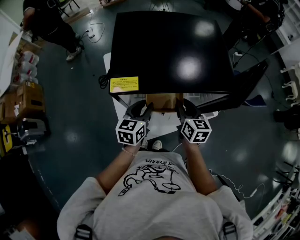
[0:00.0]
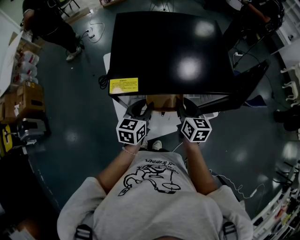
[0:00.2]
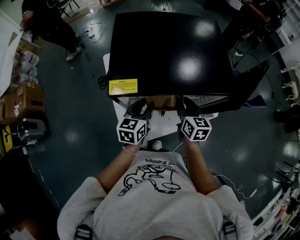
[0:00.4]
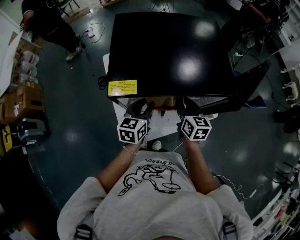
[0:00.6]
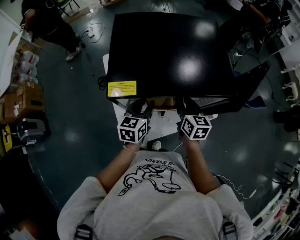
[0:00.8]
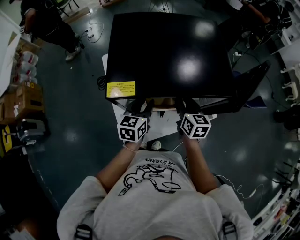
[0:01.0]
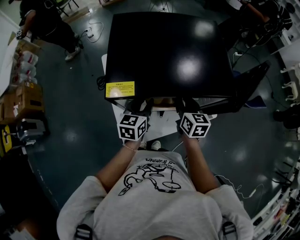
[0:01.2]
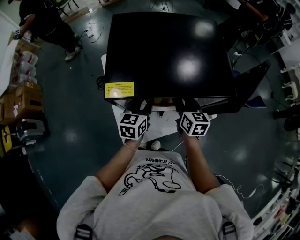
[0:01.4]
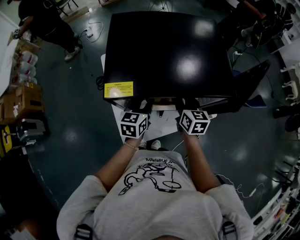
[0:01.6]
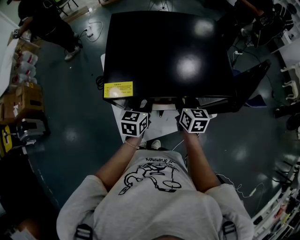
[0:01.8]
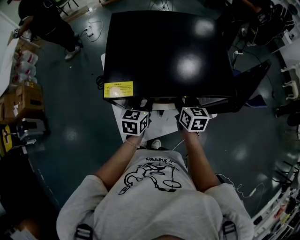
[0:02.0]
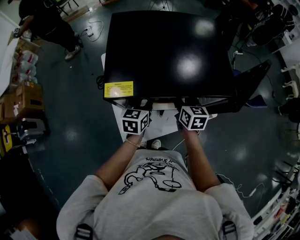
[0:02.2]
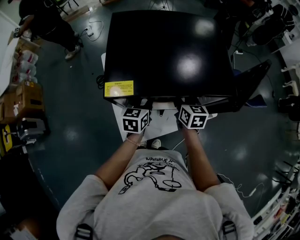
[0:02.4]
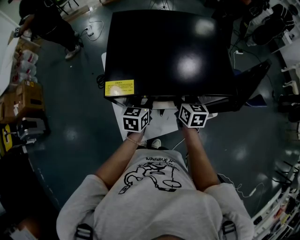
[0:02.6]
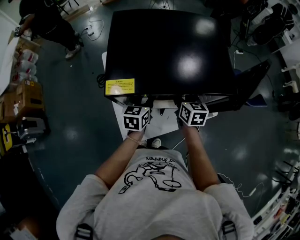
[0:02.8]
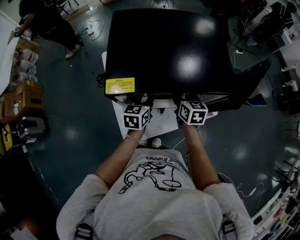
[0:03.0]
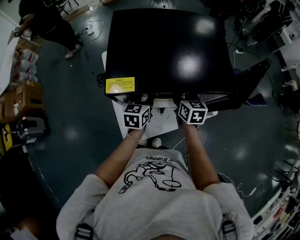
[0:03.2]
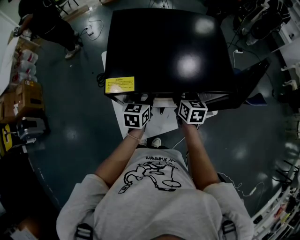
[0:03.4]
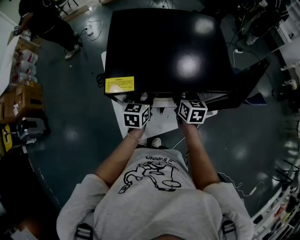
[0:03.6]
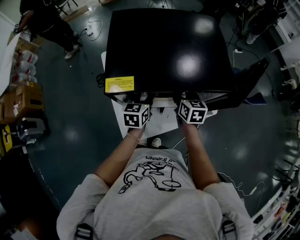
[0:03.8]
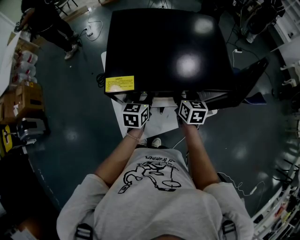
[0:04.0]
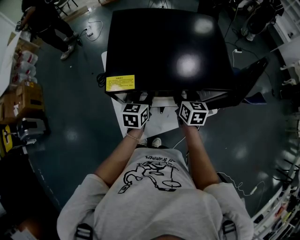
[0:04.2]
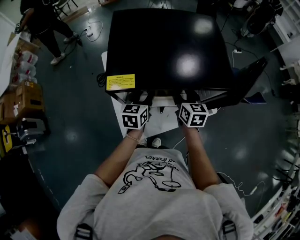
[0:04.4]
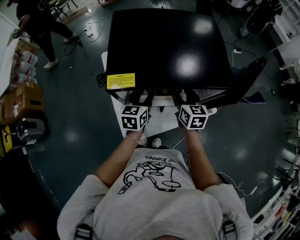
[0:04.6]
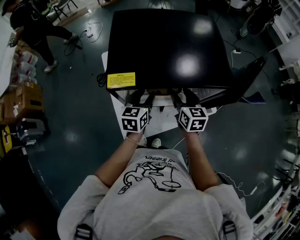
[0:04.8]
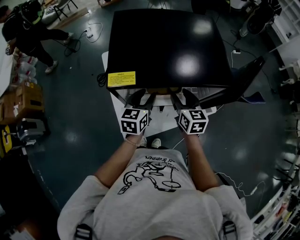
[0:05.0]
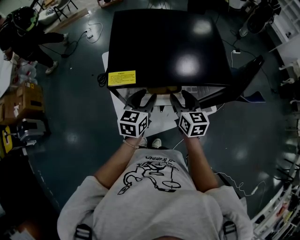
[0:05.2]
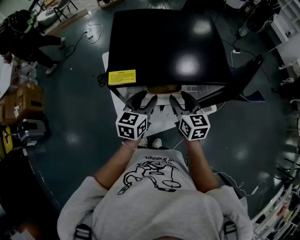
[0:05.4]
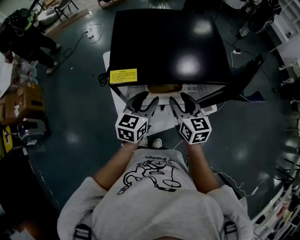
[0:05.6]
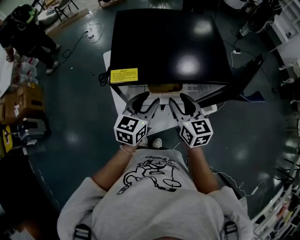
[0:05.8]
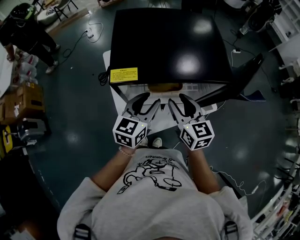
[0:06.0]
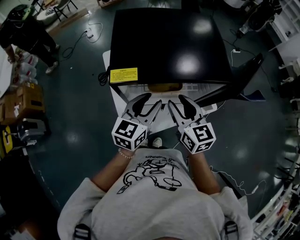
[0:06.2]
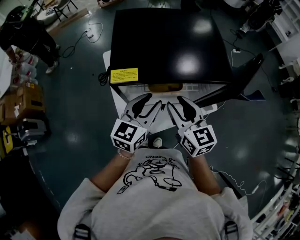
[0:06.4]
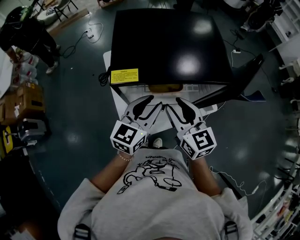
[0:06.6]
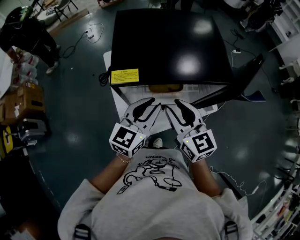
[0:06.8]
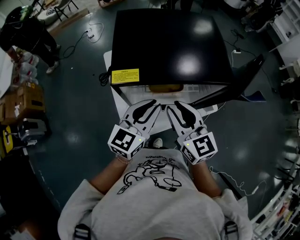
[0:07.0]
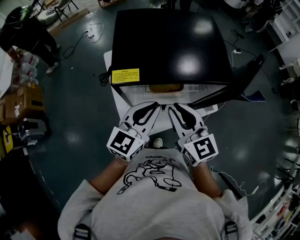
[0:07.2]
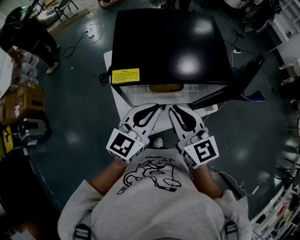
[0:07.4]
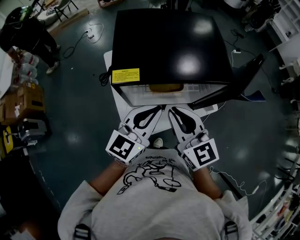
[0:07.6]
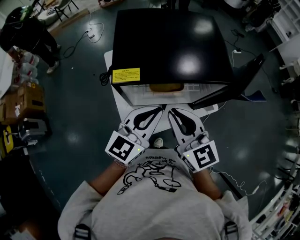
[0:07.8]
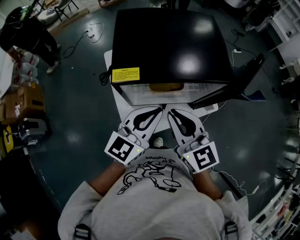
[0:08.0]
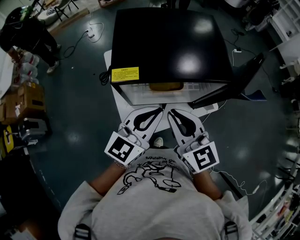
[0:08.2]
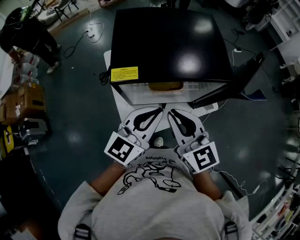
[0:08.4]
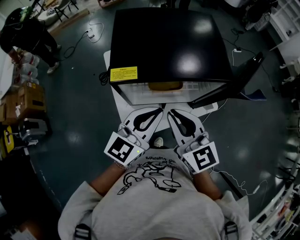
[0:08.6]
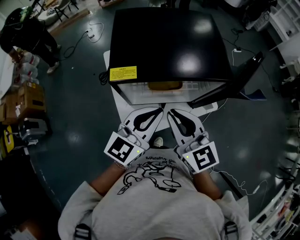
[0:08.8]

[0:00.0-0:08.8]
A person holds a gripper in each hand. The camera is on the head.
0:00.0 to 0:01.4: There are only small adjustments of the grippers.
0:01.4 to 0:03.0: The right gripper opens up.
0:03.0 to 0:04.4: The grippers move only a little.
0:04.4 to 0:05.8: The right gripper heads backward and upward, covering some 10 cm. Meanwhile the left gripper shifts some 10 cm upward and backward.
0:05.8 to 0:07.4: The right gripper travels upward and backward by roughly 10 cm, and closes. Meanwhile the left gripper goes about 10 cm upward, and closes up.
0:07.4 to 0:08.8: The grippers stay close to where they were, moving slightly.

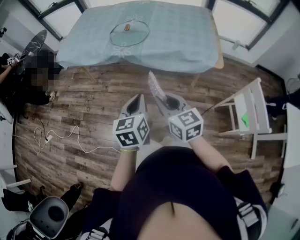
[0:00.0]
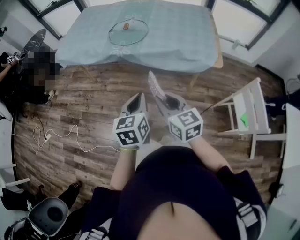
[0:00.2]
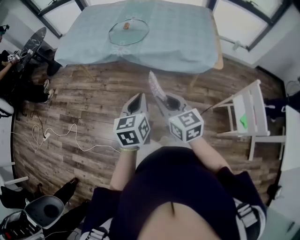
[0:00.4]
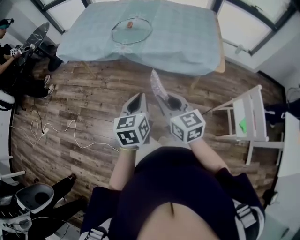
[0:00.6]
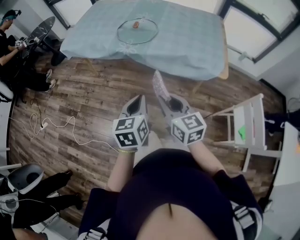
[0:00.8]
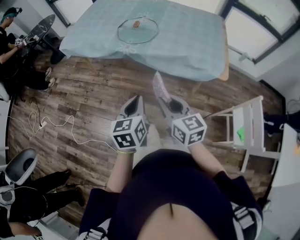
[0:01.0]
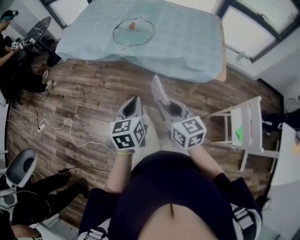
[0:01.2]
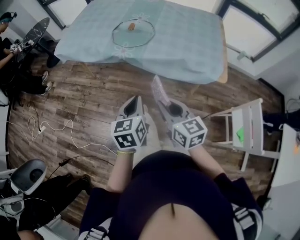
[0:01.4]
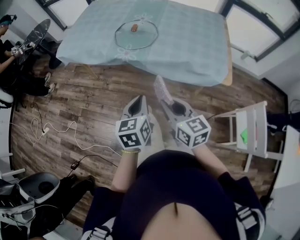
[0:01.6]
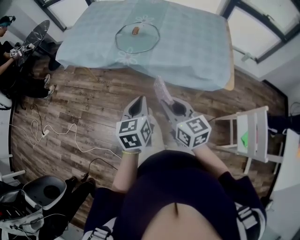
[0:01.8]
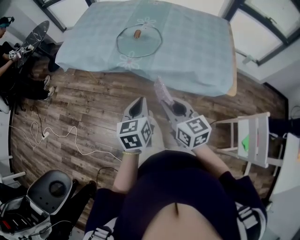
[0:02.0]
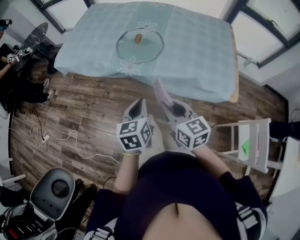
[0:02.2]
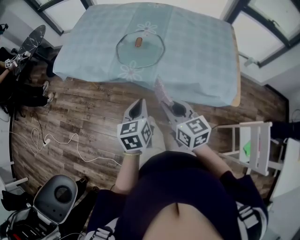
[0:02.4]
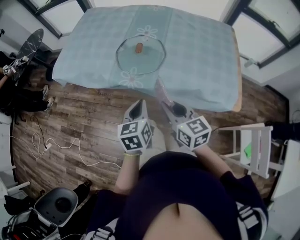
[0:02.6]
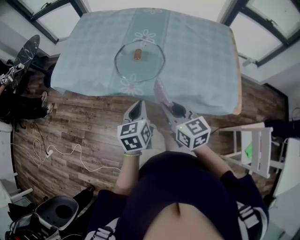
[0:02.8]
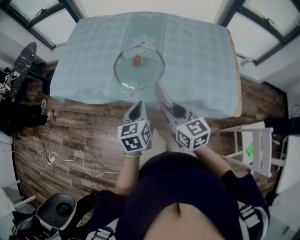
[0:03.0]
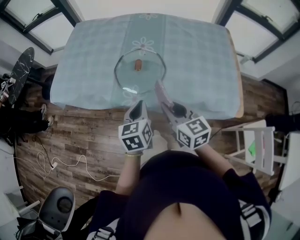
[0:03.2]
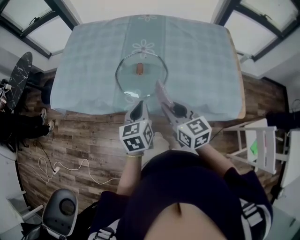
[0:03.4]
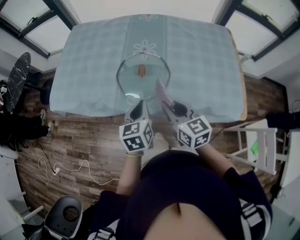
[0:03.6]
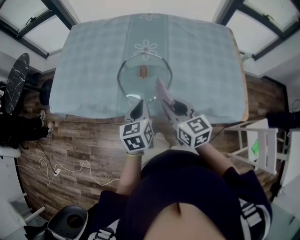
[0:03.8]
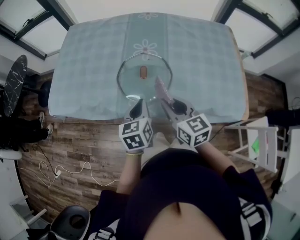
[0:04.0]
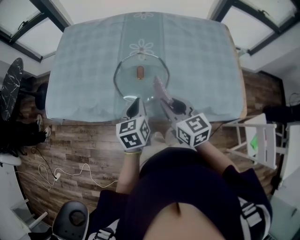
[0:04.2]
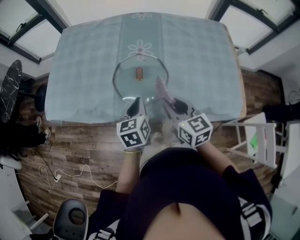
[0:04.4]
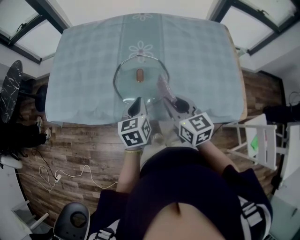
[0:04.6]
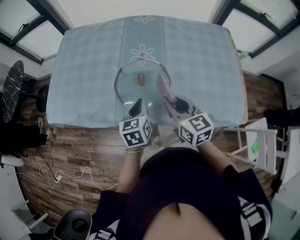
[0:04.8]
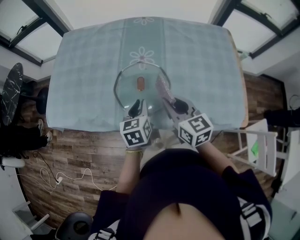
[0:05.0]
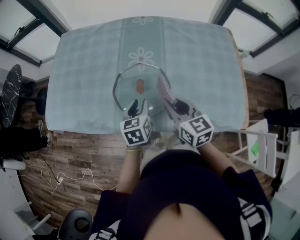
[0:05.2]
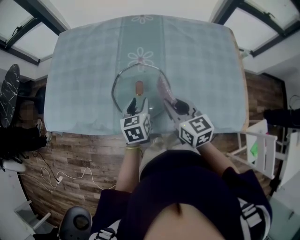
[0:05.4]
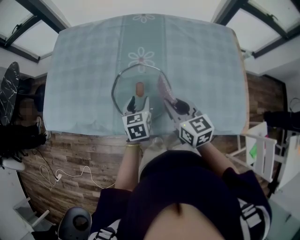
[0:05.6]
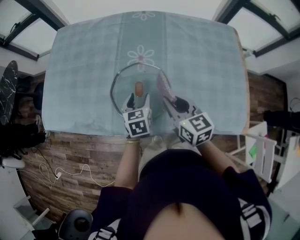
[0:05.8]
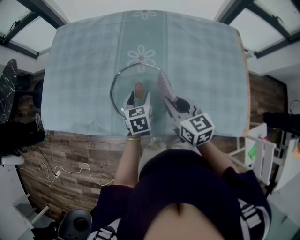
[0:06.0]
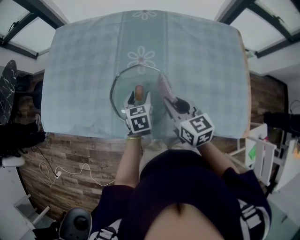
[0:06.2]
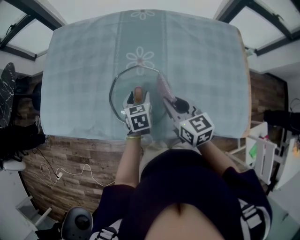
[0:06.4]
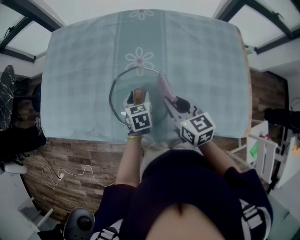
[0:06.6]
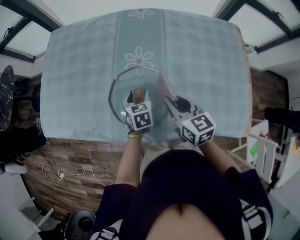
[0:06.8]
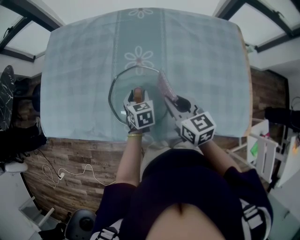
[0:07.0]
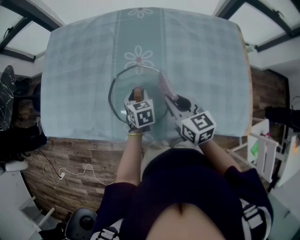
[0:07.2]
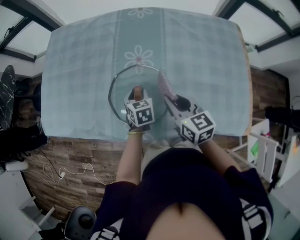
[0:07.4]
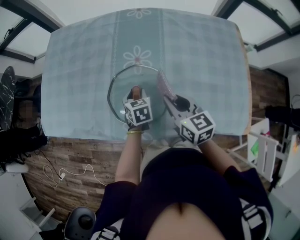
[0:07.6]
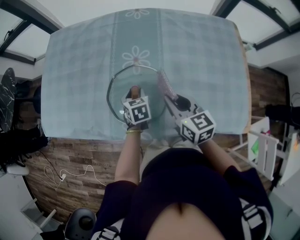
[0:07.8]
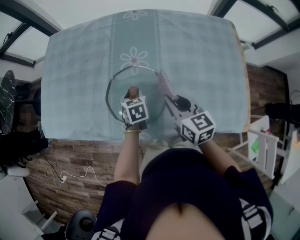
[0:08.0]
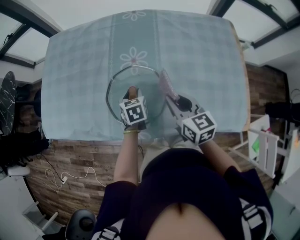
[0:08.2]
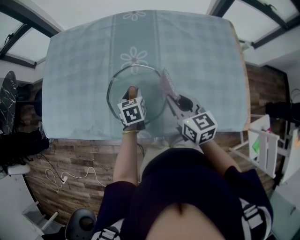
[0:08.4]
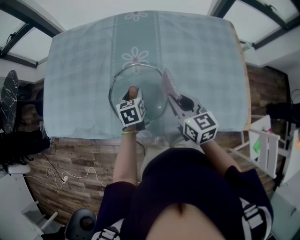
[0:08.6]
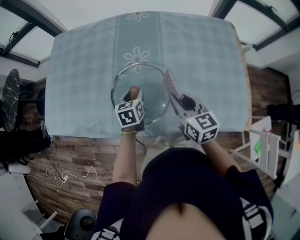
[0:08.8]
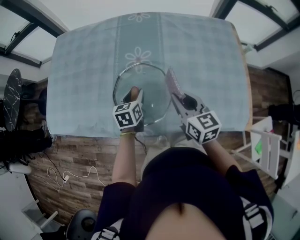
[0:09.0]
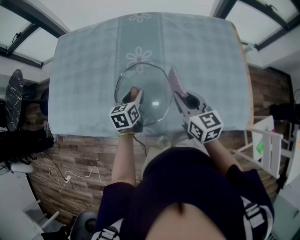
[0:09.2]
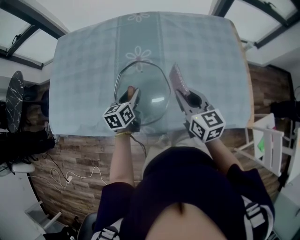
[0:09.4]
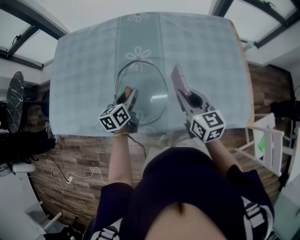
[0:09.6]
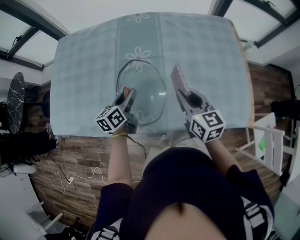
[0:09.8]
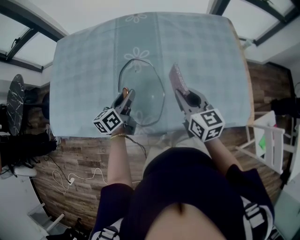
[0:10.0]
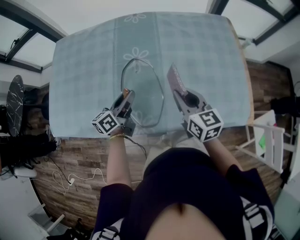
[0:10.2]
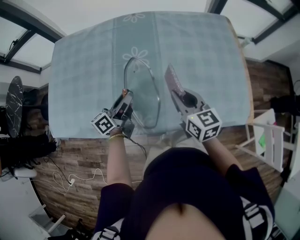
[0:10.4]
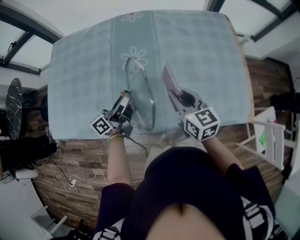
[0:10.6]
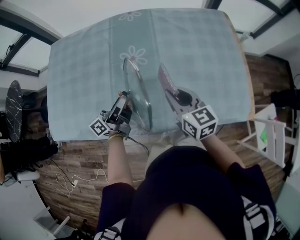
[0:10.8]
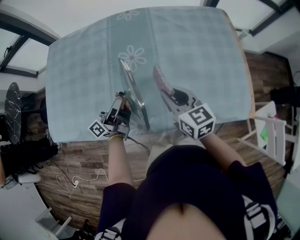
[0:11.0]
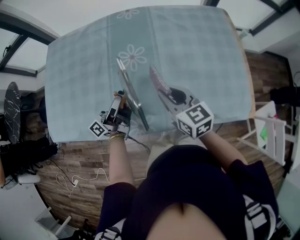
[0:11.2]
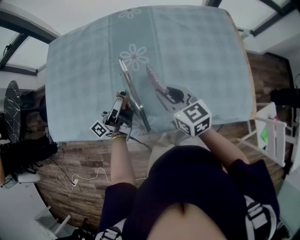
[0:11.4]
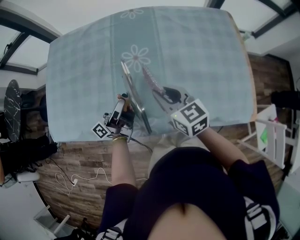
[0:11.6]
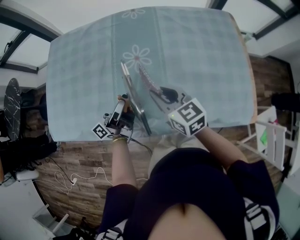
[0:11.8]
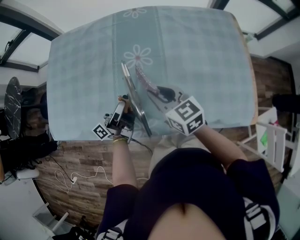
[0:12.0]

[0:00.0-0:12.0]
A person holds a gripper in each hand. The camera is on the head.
0:00.0 to 0:01.6: The two grippers go some 10 cm forward.
0:01.6 to 0:03.0: The two grippers go some 25 cm forward.
0:03.0 to 0:04.4: The two grippers go about 10 cm forward.
0:04.4 to 0:06.0: The right gripper shifts some 10 cm forward. The left gripper heads forward and downward, covering some 15 cm, and opens.
0:06.0 to 0:09.0: The grippers move only a little.
0:09.0 to 0:10.4: The left gripper moves upward, roughly 5 cm, and tilts its fingers approximately 40 degrees upward.
0:10.4 to 0:12.0: The left gripper turns by about 30 degrees. The right gripper shifts approximately 10 cm to the left.

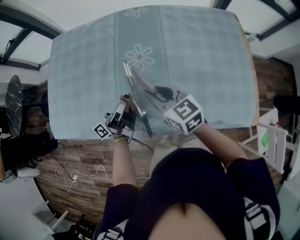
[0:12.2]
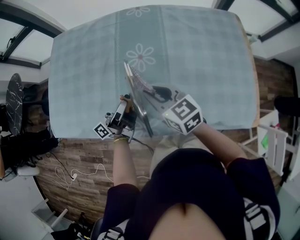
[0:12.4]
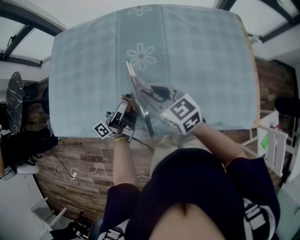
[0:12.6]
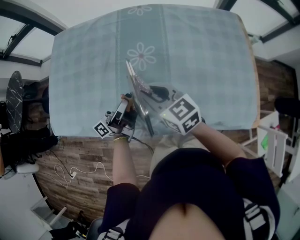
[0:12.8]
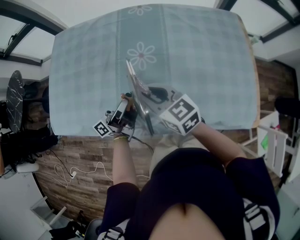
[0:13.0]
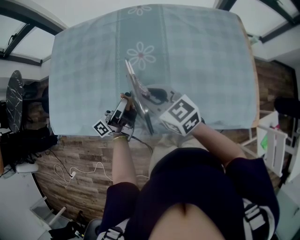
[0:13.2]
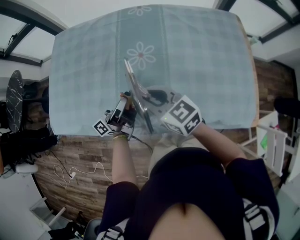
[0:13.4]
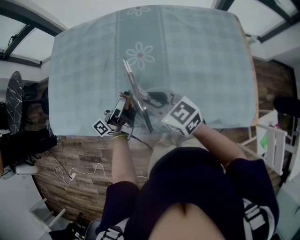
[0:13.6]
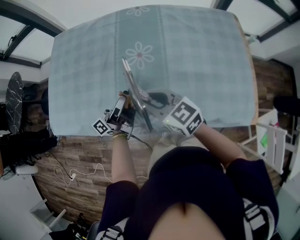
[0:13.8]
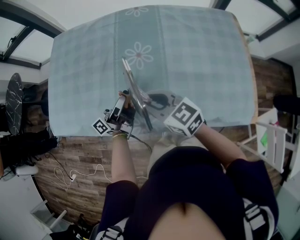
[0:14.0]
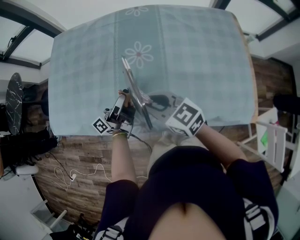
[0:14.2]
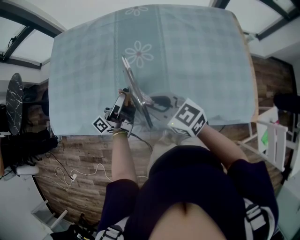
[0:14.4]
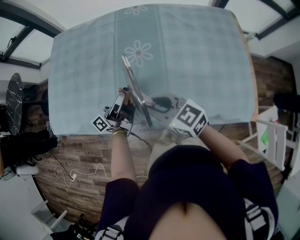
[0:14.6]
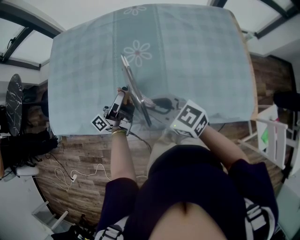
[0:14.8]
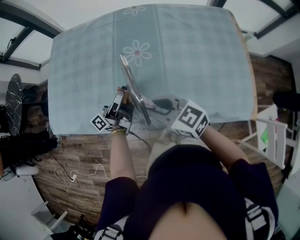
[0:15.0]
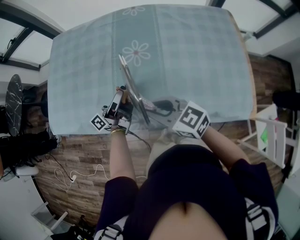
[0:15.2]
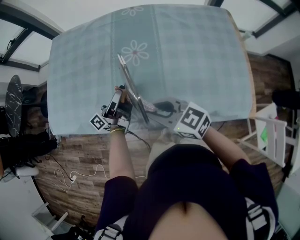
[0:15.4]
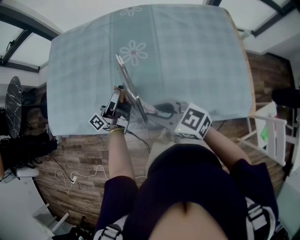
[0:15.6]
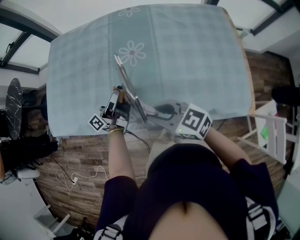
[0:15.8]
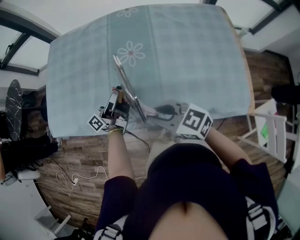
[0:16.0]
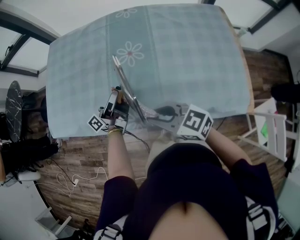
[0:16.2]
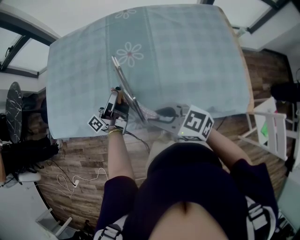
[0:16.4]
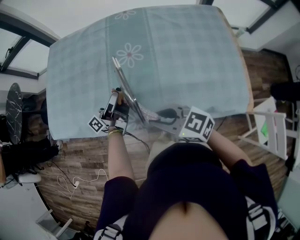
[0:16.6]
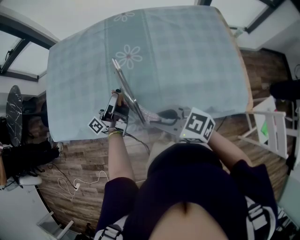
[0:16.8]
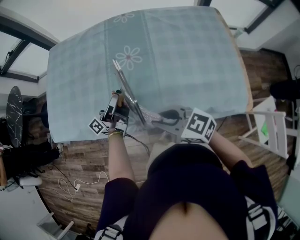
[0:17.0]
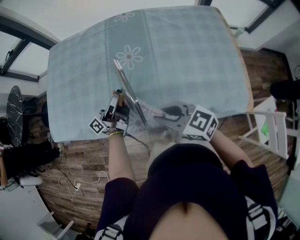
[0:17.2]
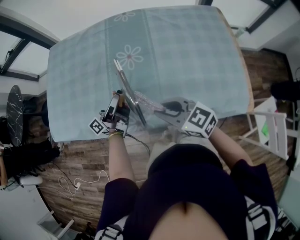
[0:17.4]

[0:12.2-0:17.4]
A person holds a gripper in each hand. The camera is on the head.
0:12.2 to 0:14.0: The right gripper ends up some 5 cm from where it was.
0:14.0 to 0:15.6: The right gripper goes approximately 10 cm backward.
0:15.6 to 0:17.4: There are only small adjustments of the grippers.
